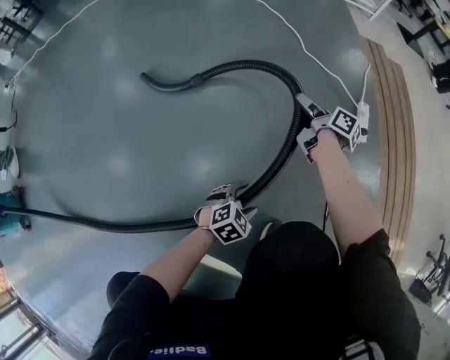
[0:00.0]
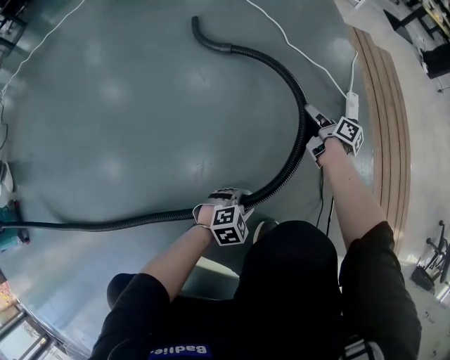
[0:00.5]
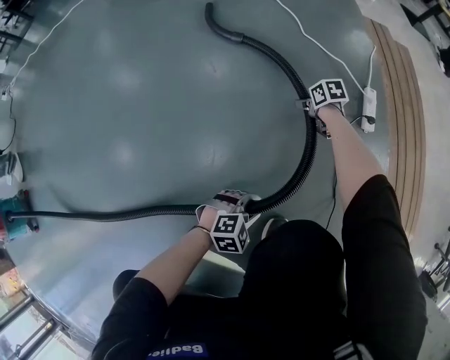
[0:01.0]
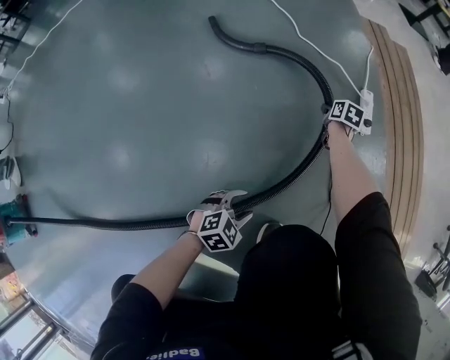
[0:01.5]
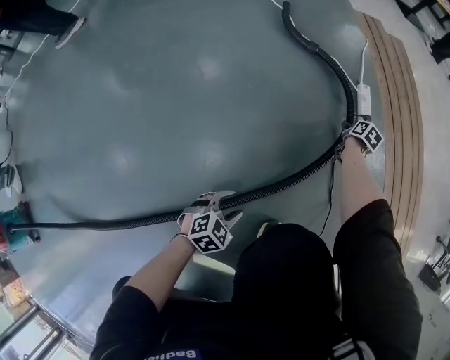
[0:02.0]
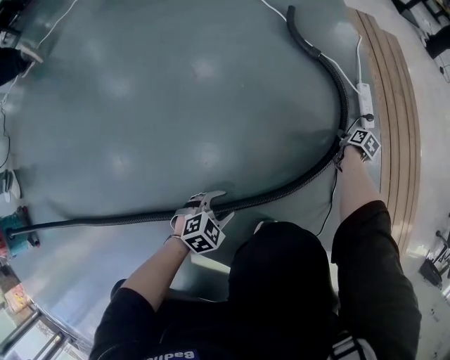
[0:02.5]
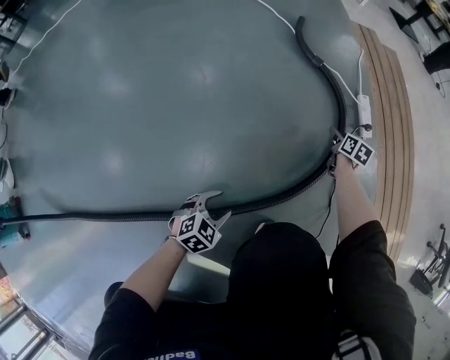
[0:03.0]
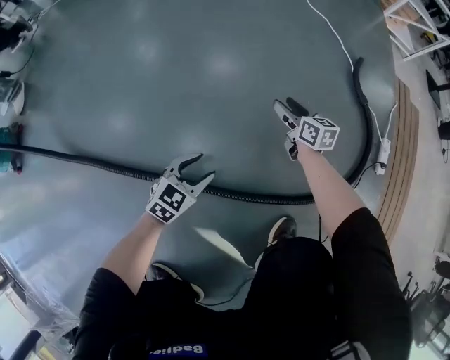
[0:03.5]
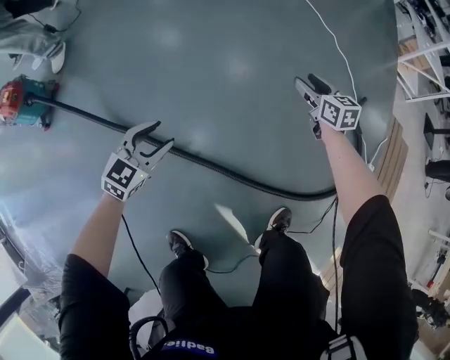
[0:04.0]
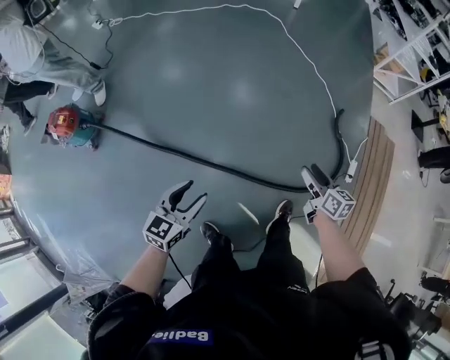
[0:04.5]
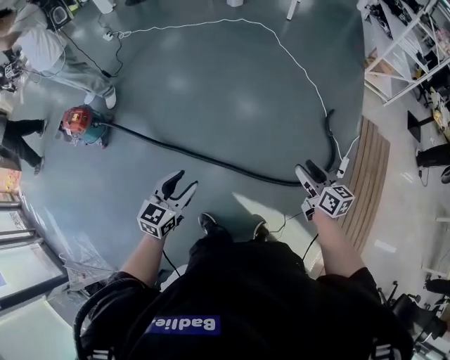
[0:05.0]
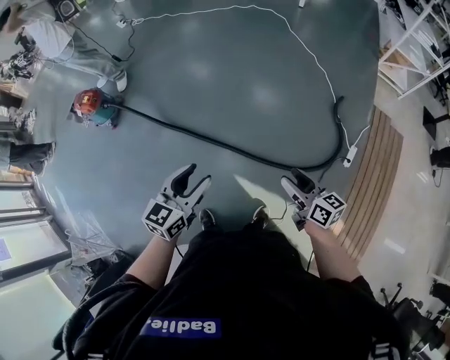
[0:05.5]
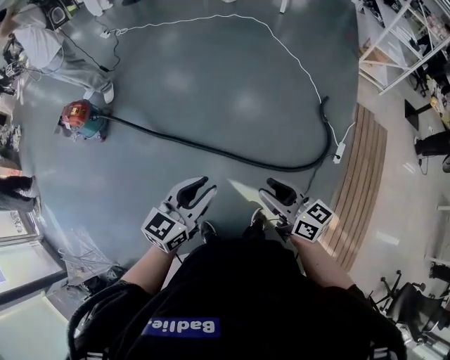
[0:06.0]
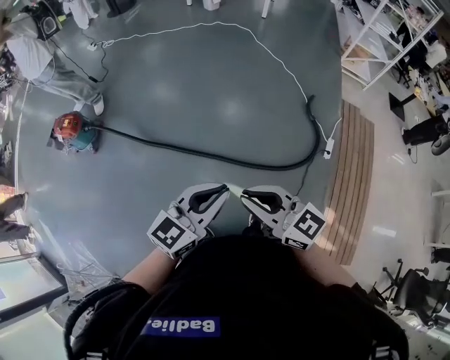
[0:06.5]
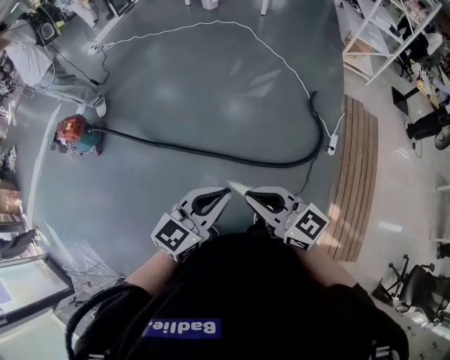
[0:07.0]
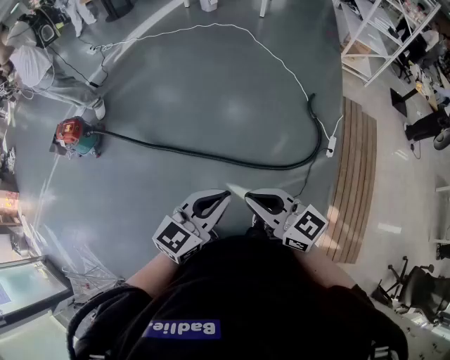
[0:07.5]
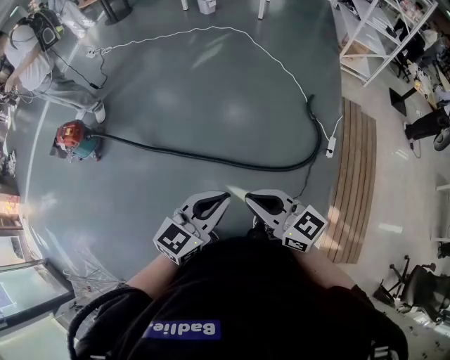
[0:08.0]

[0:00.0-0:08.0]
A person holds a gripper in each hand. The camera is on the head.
0:00.0 to 0:02.0: The right gripper moves about 40 cm, and tips its fingers downward by about 40 degrees.
0:02.0 to 0:04.0: The two grippers travel together, roughly 60 cm. The left gripper swivels about 60 degrees. Meanwhile the right gripper changes its angle by roughly 90 degrees.
0:04.0 to 0:06.0: Both grippers are carried backward, about 50 cm. The grippers both shift upward by roughly 50 cm. The right gripper swivels about 30 degrees. Meanwhile the left gripper changes its angle by roughly 20 degrees.
0:06.0 to 0:08.0: The right gripper goes approximately 10 cm upward, to the left and backward, and closes up; the left gripper moves backward, approximately 5 cm, and closes.

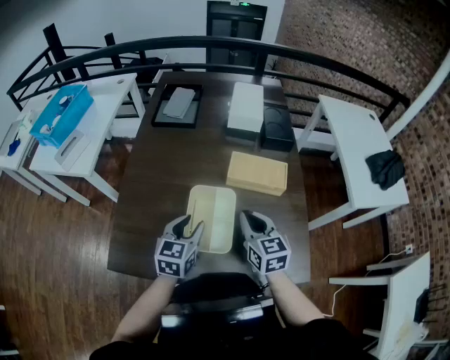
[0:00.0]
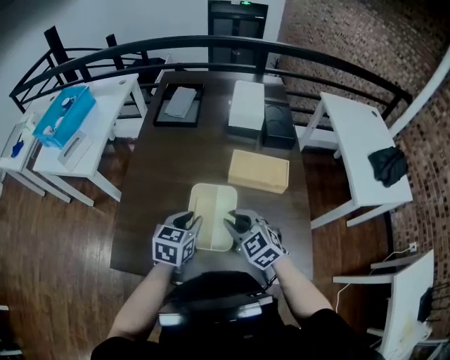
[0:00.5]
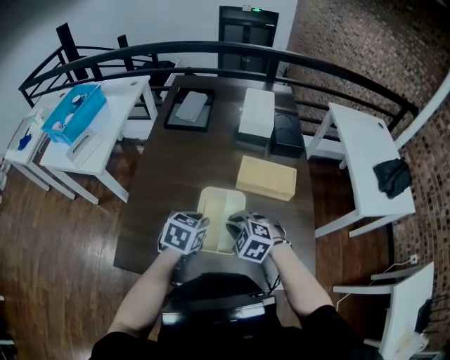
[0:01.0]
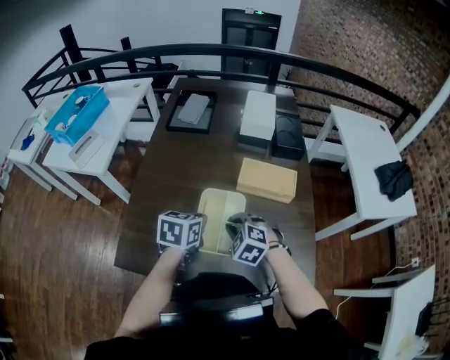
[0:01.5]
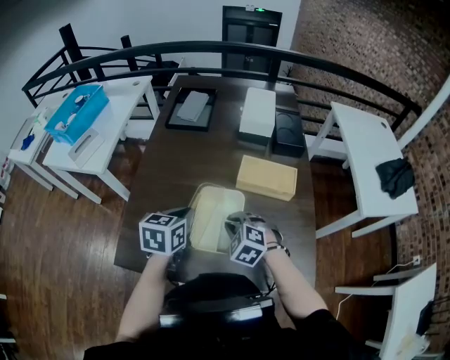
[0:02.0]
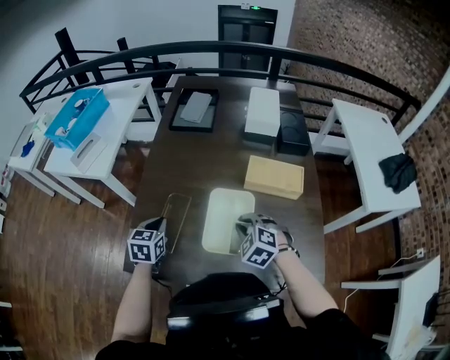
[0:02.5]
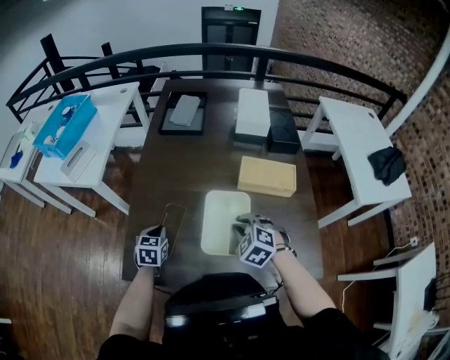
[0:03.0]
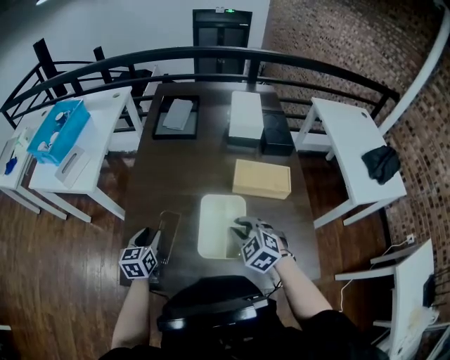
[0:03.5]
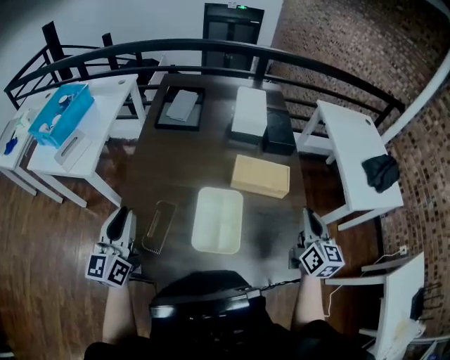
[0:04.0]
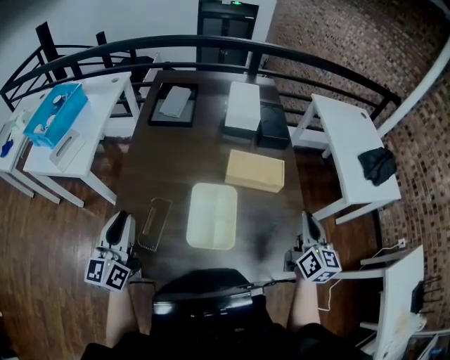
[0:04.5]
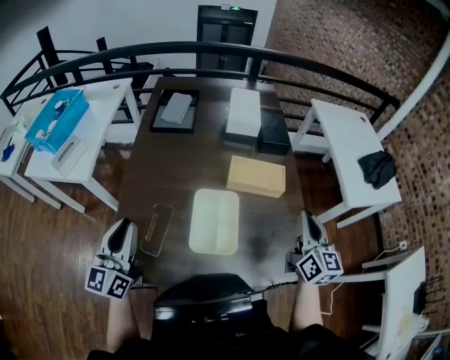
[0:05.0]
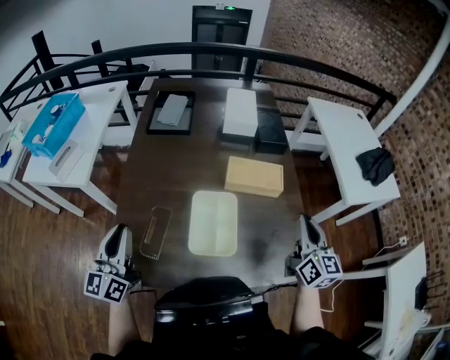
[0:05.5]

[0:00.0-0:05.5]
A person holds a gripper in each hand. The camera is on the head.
0:00.0 to 0:02.0: The left gripper moves approximately 5 cm, and closes up, while the right gripper heads to the left and downward, covering approximately 10 cm, and twists some 50 degrees counterclockwise, seen from behind.
0:02.0 to 0:03.5: The left gripper shifts approximately 20 cm to the left and downward, and opens.
0:03.5 to 0:05.5: The right gripper is displaced to the right and upward by about 25 cm, and angles its fingers upward, by about 40 degrees; the left gripper goes roughly 20 cm upward, tilts its fingers some 30 degrees upward, and closes.

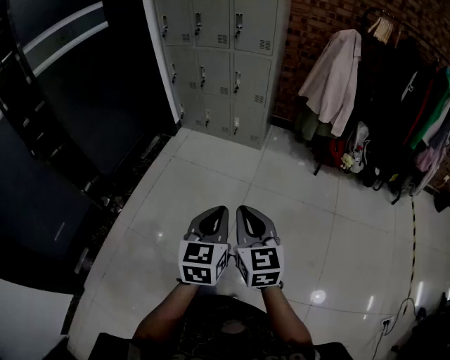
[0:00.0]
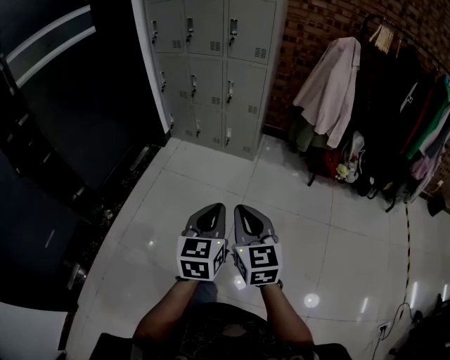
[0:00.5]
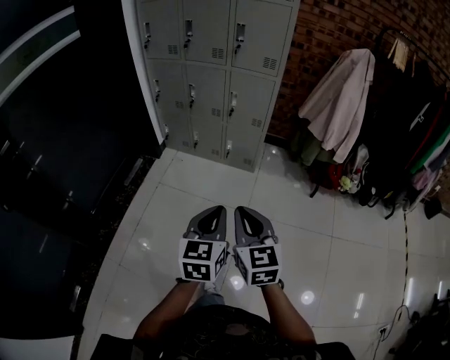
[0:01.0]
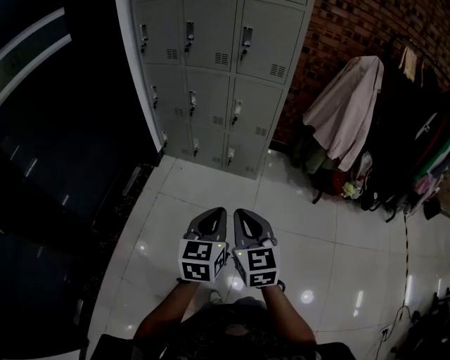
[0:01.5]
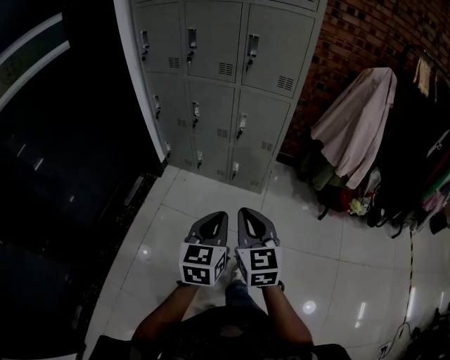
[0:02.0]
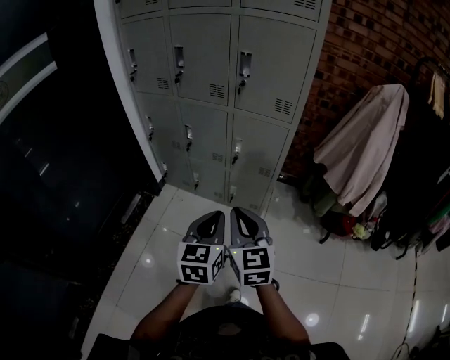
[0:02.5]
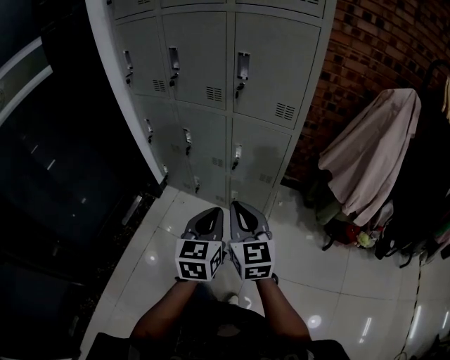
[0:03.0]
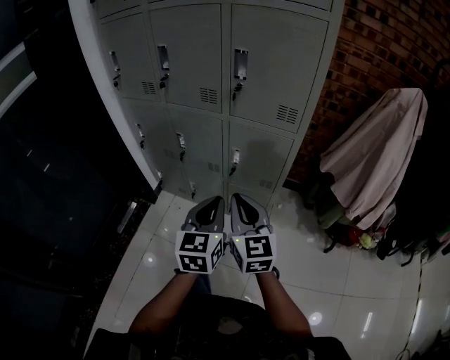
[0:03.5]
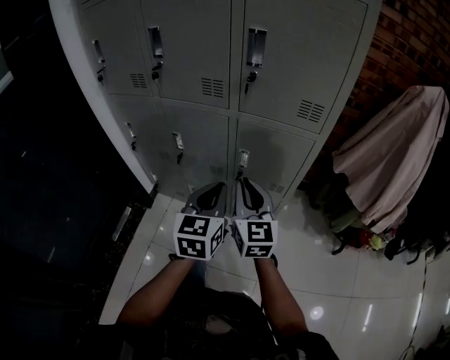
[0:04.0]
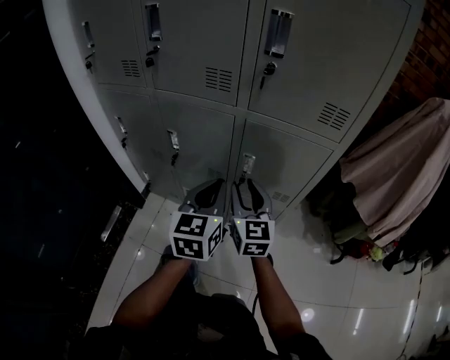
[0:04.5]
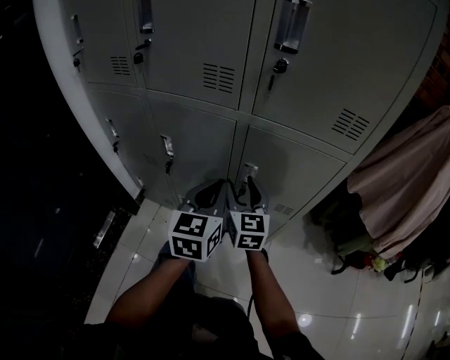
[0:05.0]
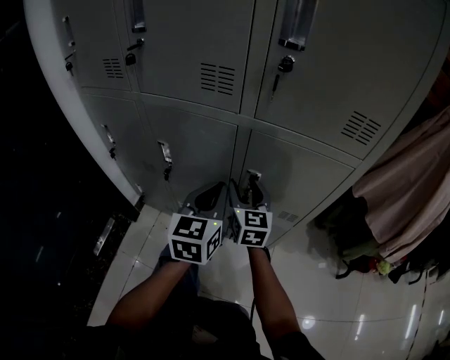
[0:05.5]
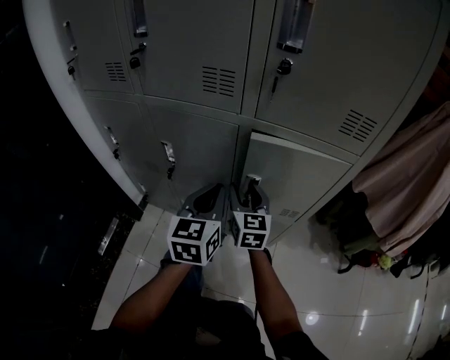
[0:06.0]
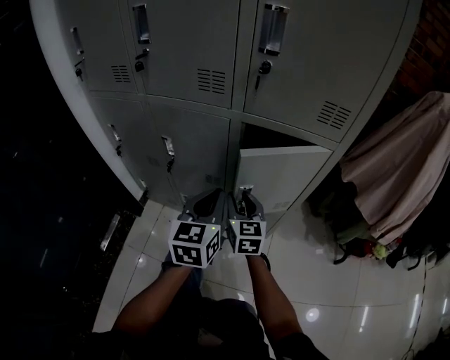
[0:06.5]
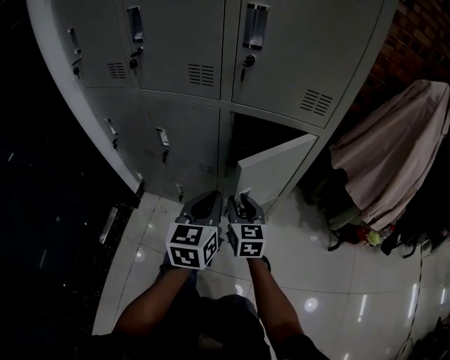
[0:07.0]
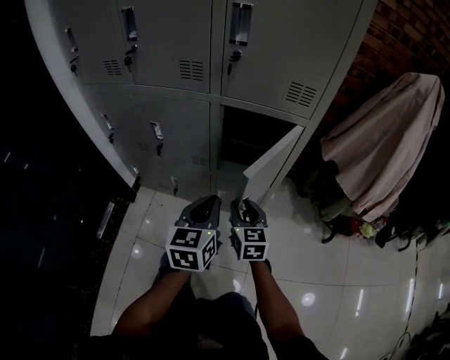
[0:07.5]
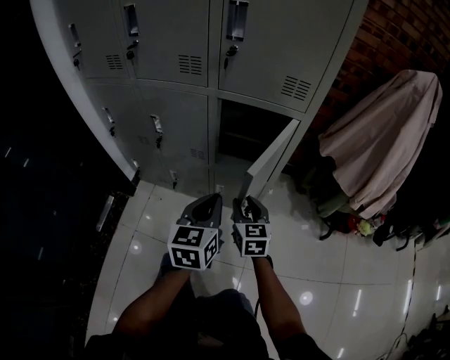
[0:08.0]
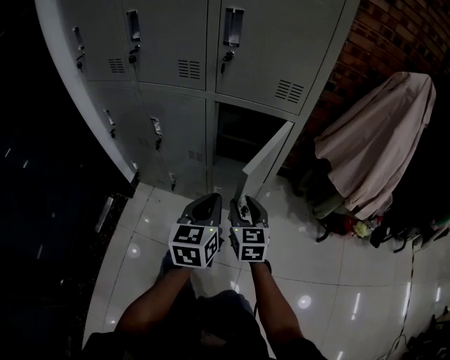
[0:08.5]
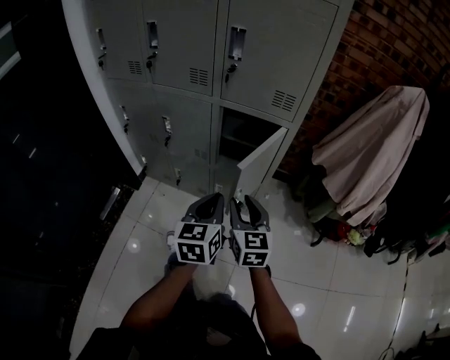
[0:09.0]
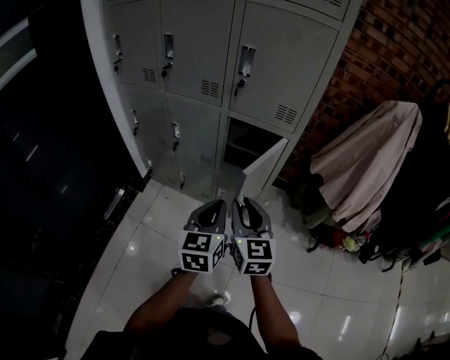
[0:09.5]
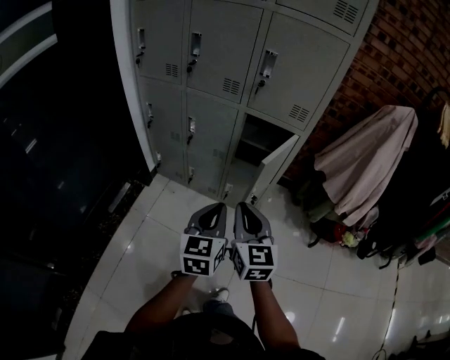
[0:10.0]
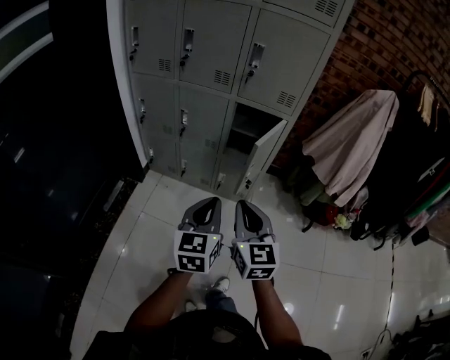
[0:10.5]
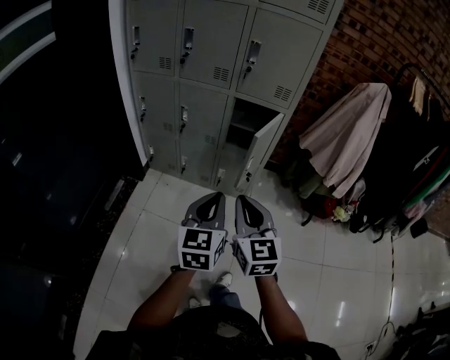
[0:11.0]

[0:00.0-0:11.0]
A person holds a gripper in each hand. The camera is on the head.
0:00.0 to 0:02.0: The pair of grippers is taken forward, some 50 cm.
0:02.0 to 0:03.5: Both grippers travel together forward, roughly 30 cm.
0:03.5 to 0:05.5: The grippers both shift forward and downward by approximately 35 cm. The right gripper opens up.
0:05.5 to 0:07.5: The two grippers go roughly 20 cm backward.
0:07.5 to 0:09.0: The right gripper goes about 15 cm upward and backward; the left gripper goes approximately 10 cm backward and upward.
0:09.0 to 0:11.0: The left gripper goes about 25 cm backward, to the left and upward, while the right gripper moves backward, upward and to the left, about 30 cm, and closes up.

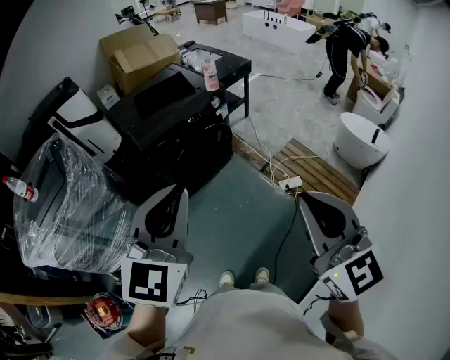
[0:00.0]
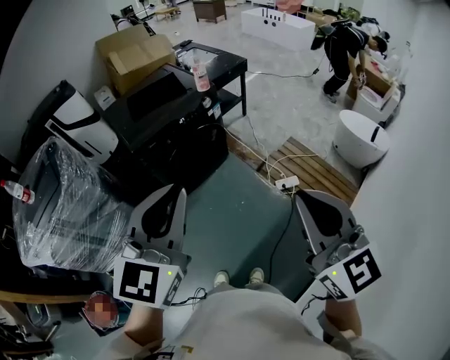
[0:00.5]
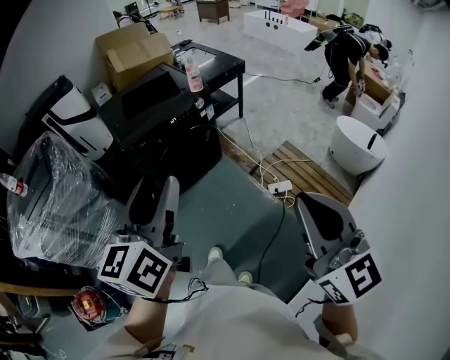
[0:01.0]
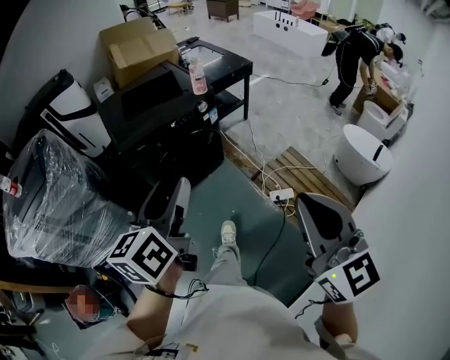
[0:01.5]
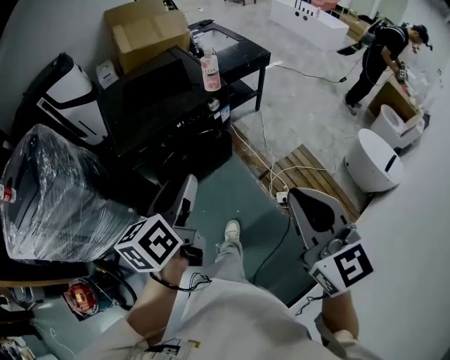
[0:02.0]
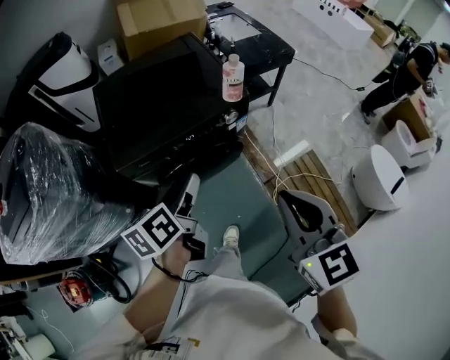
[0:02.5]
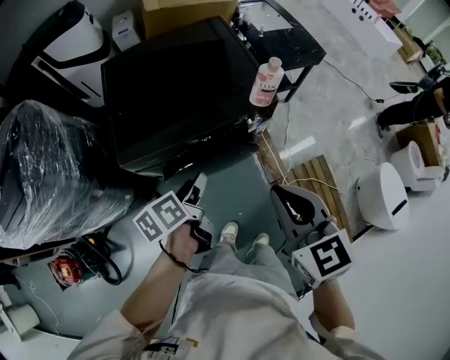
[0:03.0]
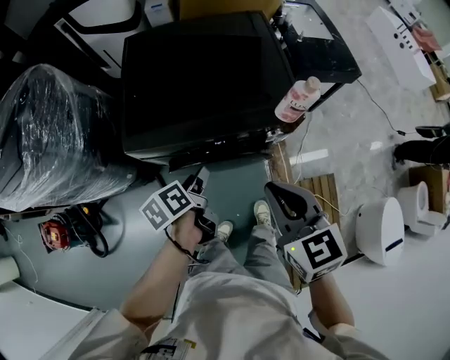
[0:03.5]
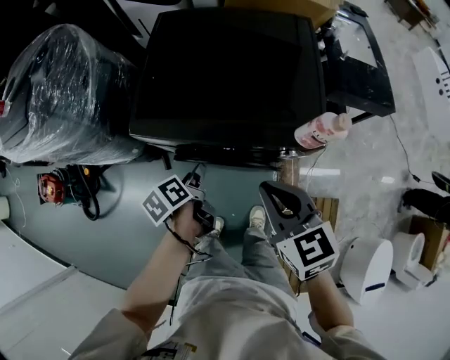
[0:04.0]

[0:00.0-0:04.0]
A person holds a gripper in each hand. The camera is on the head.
0:00.0 to 0:02.0: The left gripper travels forward and downward by about 30 cm, twists about 50 degrees counterclockwise, seen from behind, and opens up; the right gripper goes about 25 cm forward and to the right.
0:02.0 to 0:04.0: The left gripper shifts some 30 cm downward, and angles its fingers downward, by approximately 30 degrees. The right gripper shifts by roughly 50 cm, and turns by roughly 50 degrees.
